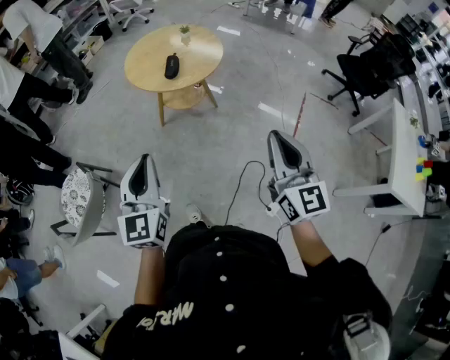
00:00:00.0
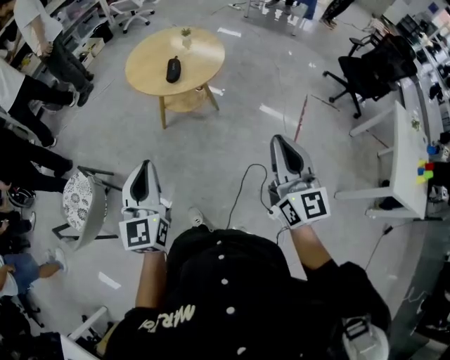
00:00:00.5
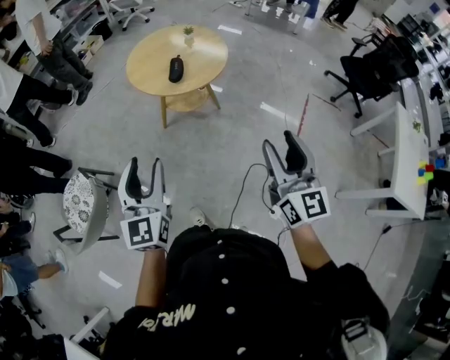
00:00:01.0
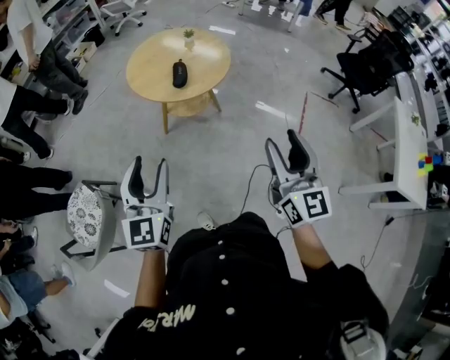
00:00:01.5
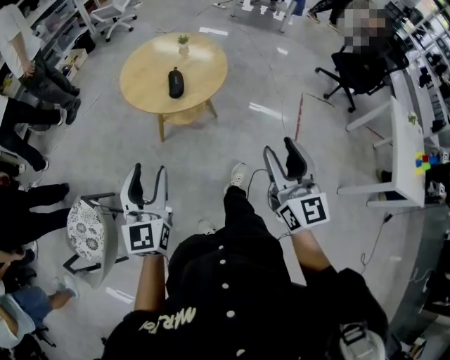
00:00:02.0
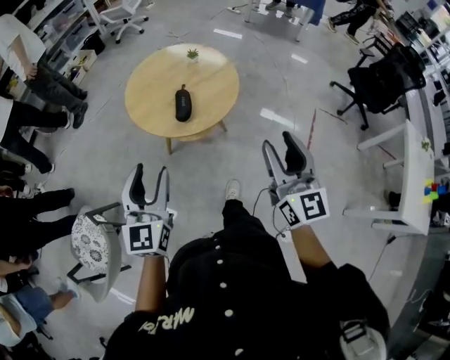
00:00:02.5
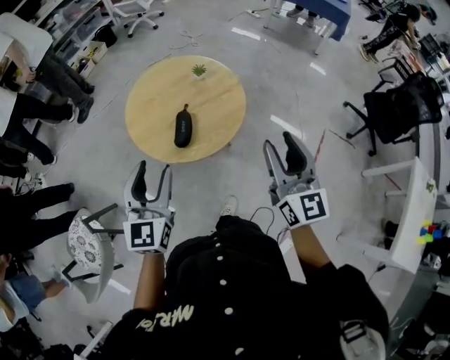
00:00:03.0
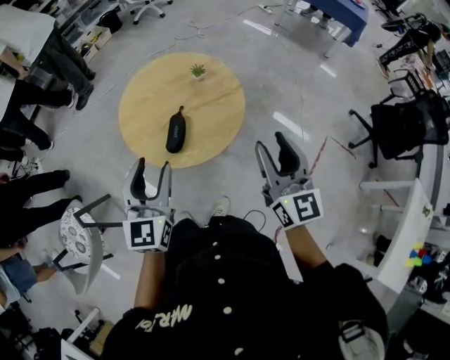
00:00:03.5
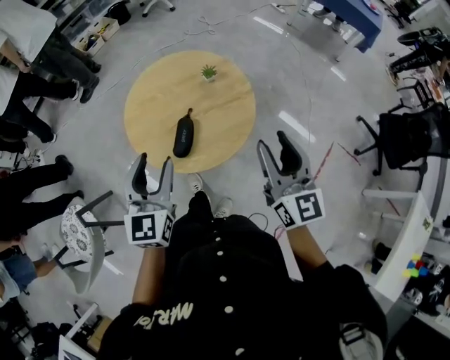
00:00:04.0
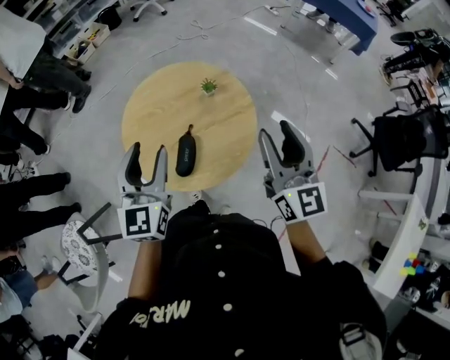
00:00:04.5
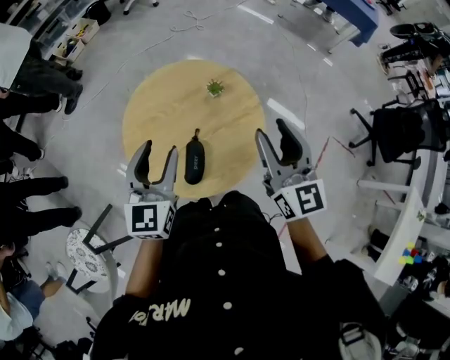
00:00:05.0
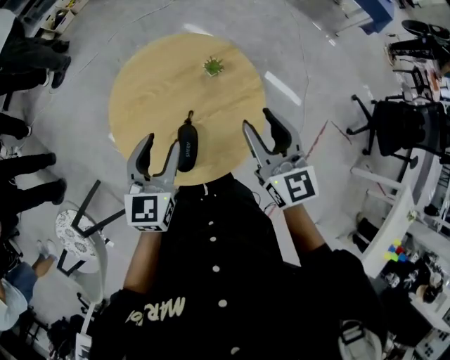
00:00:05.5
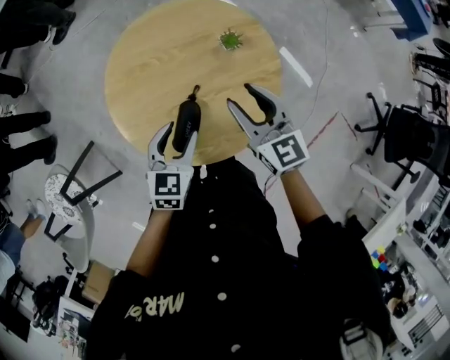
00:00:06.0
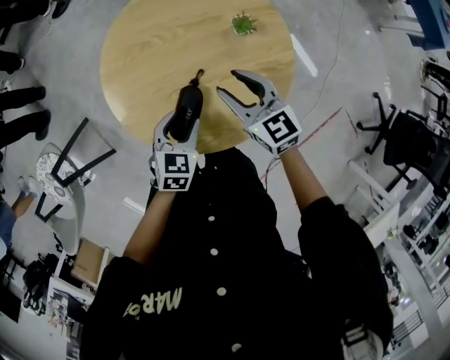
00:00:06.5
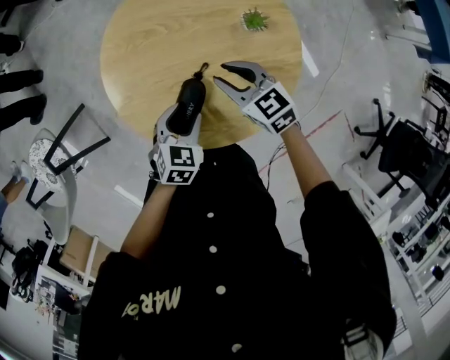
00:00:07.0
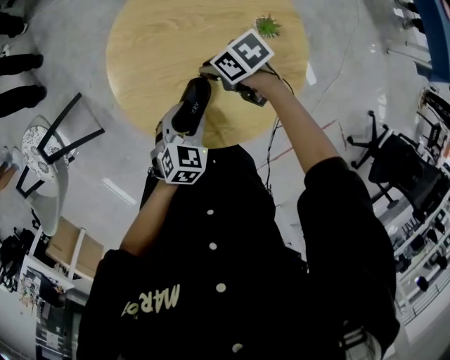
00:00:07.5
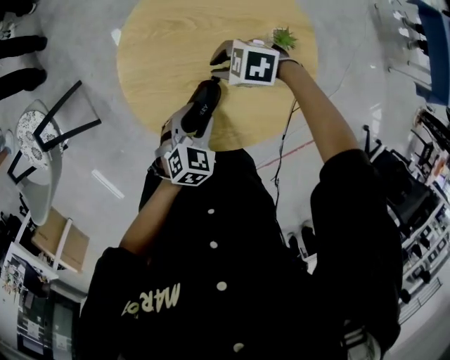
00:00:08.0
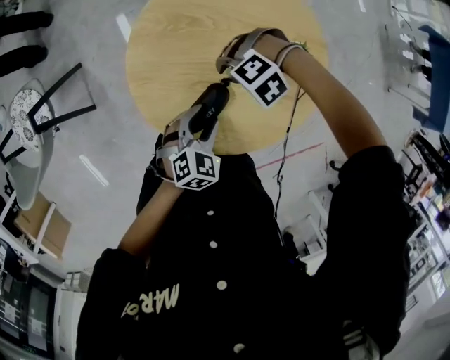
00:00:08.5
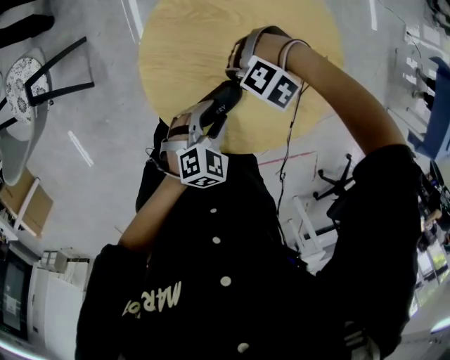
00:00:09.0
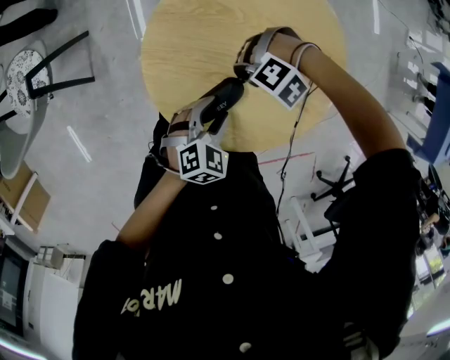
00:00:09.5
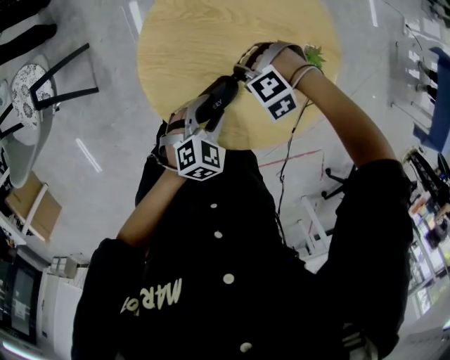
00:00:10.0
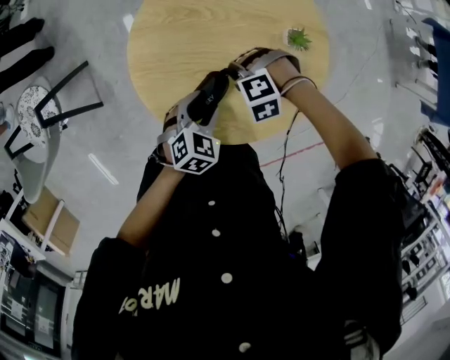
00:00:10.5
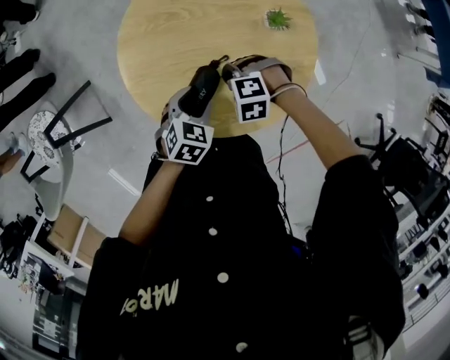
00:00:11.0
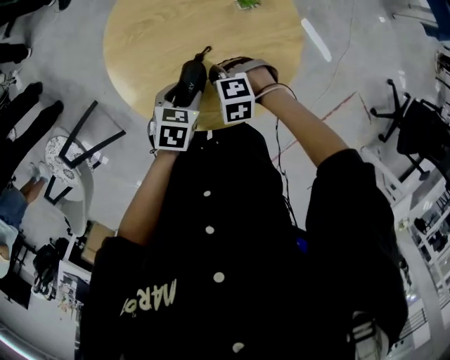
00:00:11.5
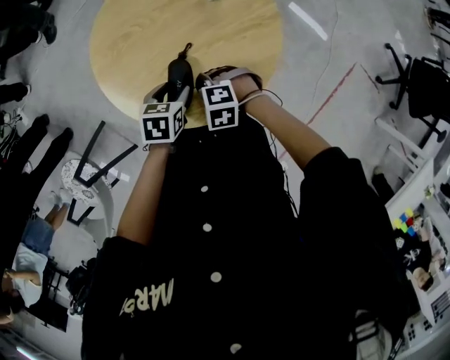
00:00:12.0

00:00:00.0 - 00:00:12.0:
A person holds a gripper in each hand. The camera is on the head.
00:00:00.0 - 00:00:02.0: The grippers both shift forward and to the left by some 15 cm. The left gripper opens its fingers, while the right gripper opens.
00:00:02.0 - 00:00:04.0: The two grippers travel together, forward, about 40 cm.
00:00:04.0 - 00:00:06.0: The right gripper travels forward, downward and to the left by approximately 35 cm, and rotates roughly 30 degrees, while the left gripper heads downward and forward, covering roughly 30 cm, and changes its angle by approximately 30 degrees.
00:00:06.0 - 00:00:08.0: The right gripper travels downward by approximately 20 cm, angles its fingers downward, by some 30 degrees, and closes, while the left gripper goes some 10 cm downward.
00:00:08.0 - 00:00:10.0: The right gripper rotates around the line of its fingers by roughly 60 degrees, counterclockwise from behind.
00:00:10.0 - 00:00:12.0: The right gripper shifts by roughly 10 cm, and rotates around the line of its fingers by approximately 70 degrees, clockwise from behind.

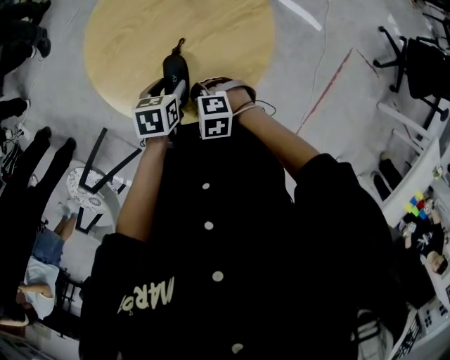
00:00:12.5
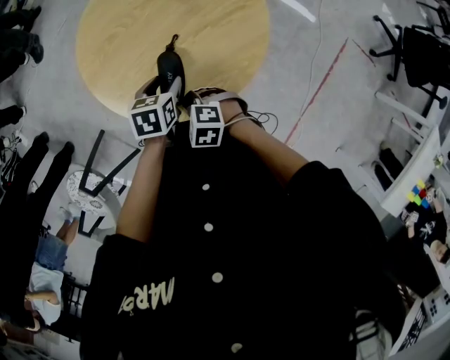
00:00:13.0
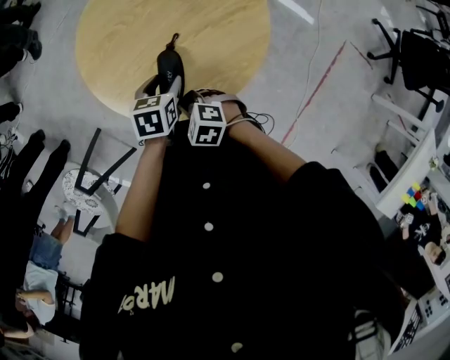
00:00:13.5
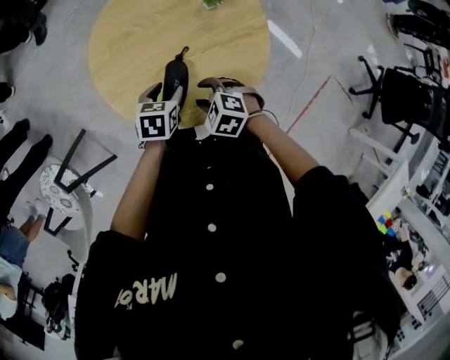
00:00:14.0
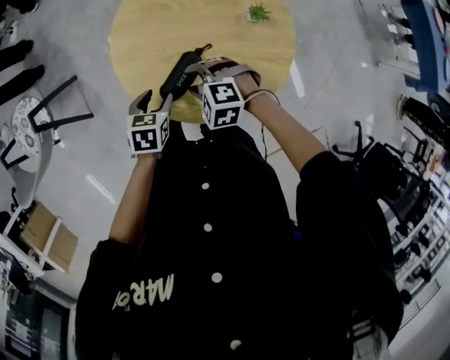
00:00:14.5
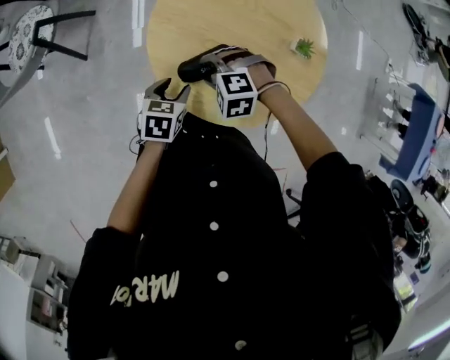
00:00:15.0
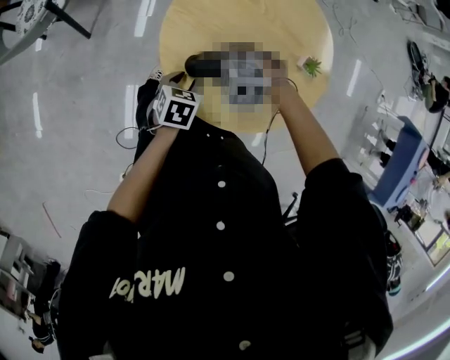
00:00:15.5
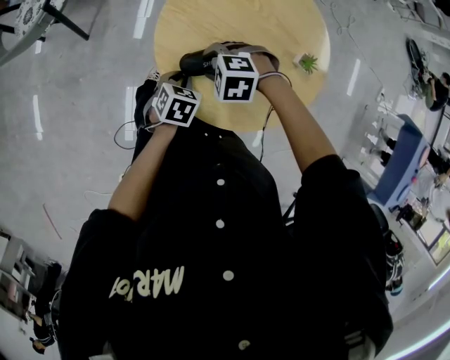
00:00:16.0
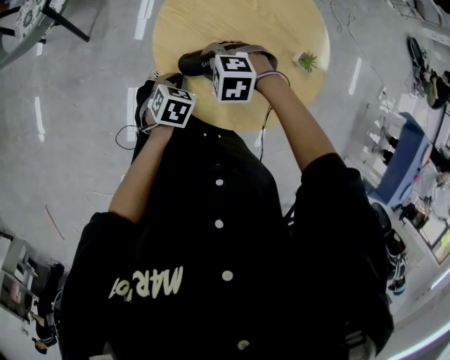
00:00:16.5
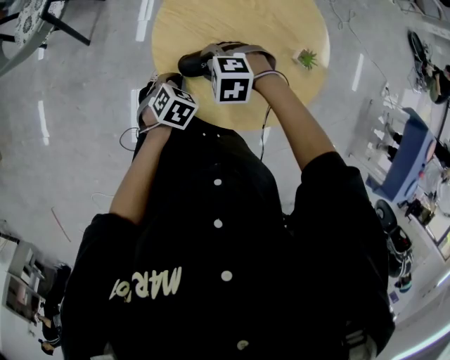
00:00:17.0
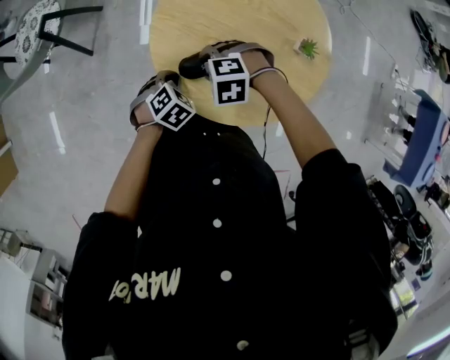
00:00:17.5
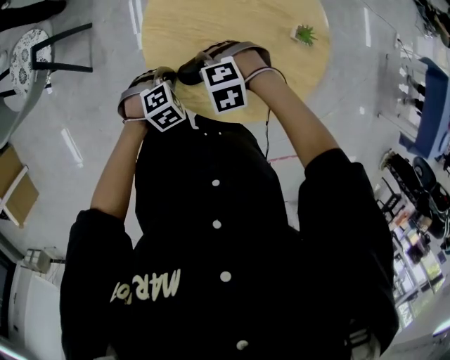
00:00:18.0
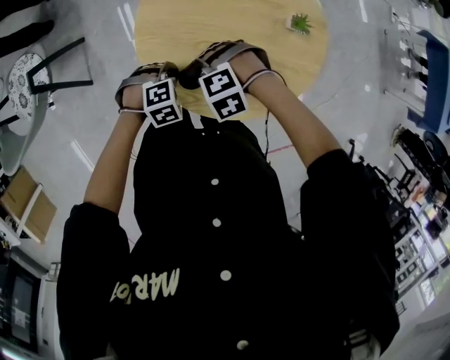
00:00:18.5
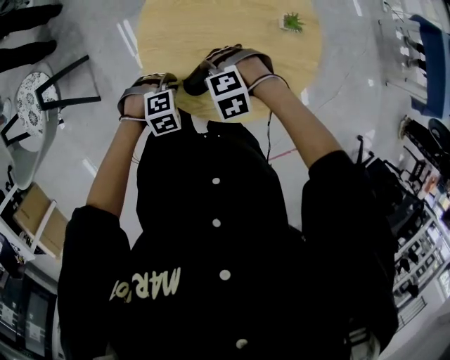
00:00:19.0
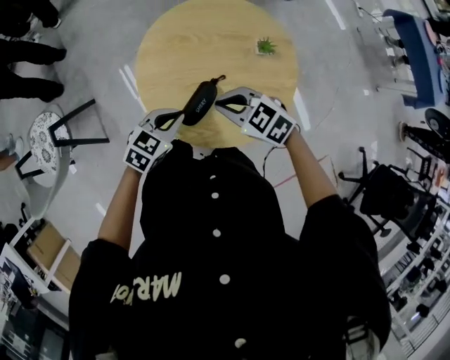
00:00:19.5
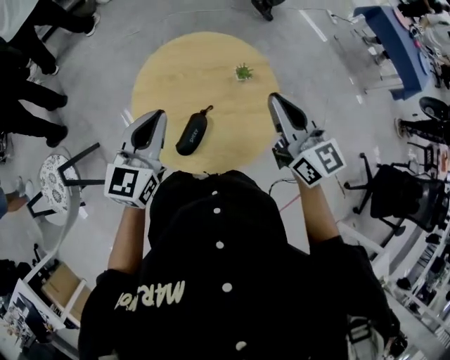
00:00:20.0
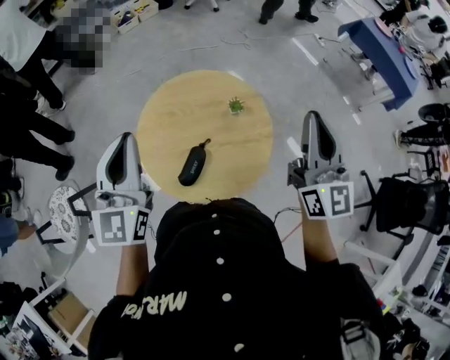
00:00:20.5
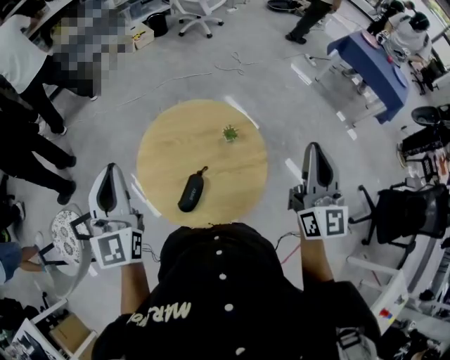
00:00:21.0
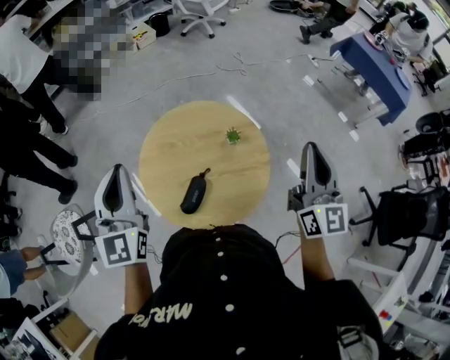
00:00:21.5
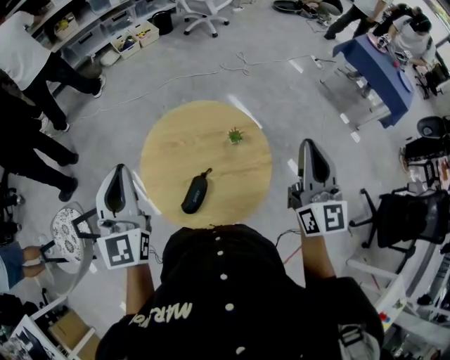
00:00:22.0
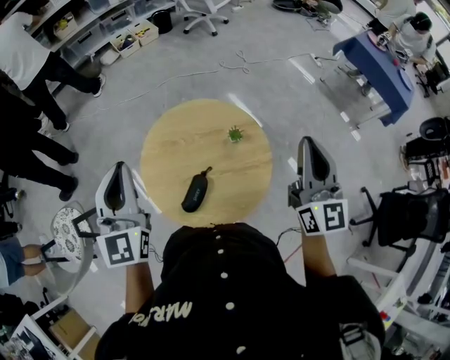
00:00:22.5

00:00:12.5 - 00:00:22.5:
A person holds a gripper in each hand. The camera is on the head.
00:00:12.5 - 00:00:14.5: The right gripper shifts roughly 5 cm upward, rotates approximately 40 degrees, and opens up. The left gripper ends up approximately 5 cm from where it was, and swivels about 30 degrees.
00:00:14.5 - 00:00:16.5: The left gripper shifts some 5 cm downward, and closes up, while the right gripper rotates approximately 40 degrees.
00:00:16.5 - 00:00:18.5: The left gripper moves about 5 cm, and rolls clockwise, seen from behind, by roughly 80 degrees.
00:00:18.5 - 00:00:20.5: Both grippers move upward, about 50 cm. The left gripper tips its fingers upward by approximately 70 degrees, while the right gripper angles its fingers upward, by approximately 90 degrees, and closes its fingers.
00:00:20.5 - 00:00:22.5: The grippers stay close to where they were, moving slightly.

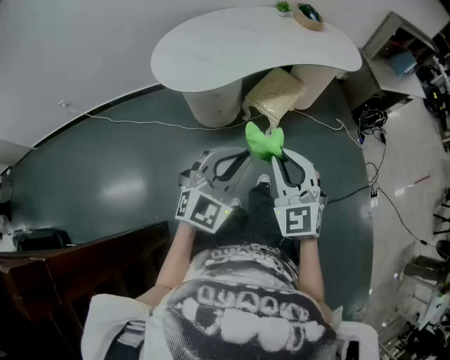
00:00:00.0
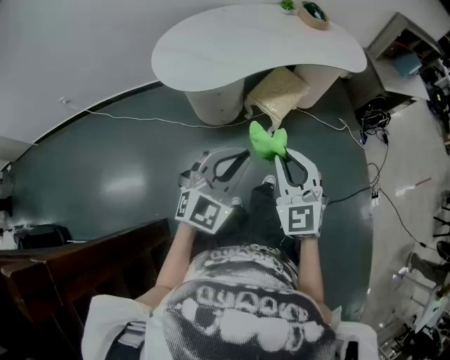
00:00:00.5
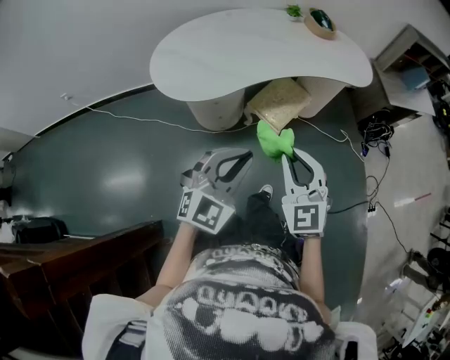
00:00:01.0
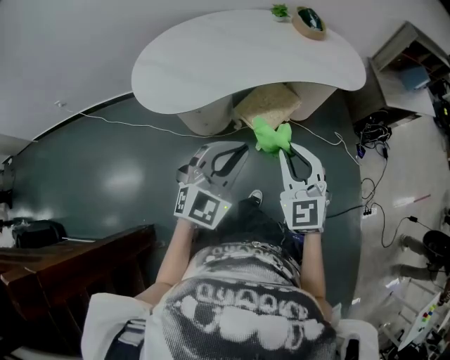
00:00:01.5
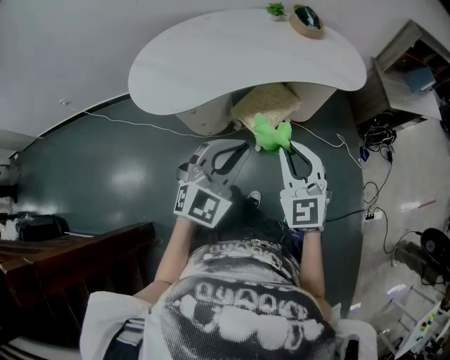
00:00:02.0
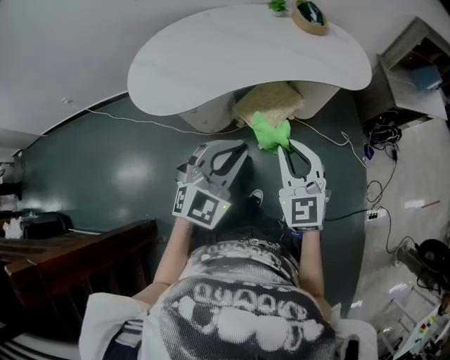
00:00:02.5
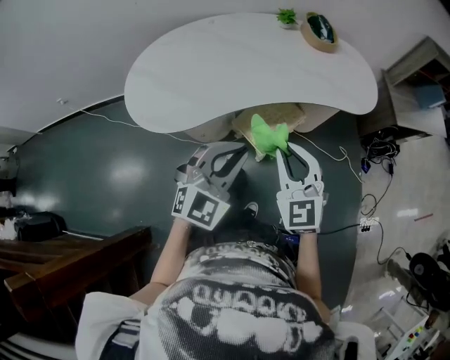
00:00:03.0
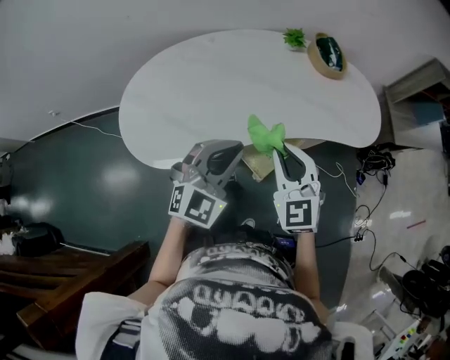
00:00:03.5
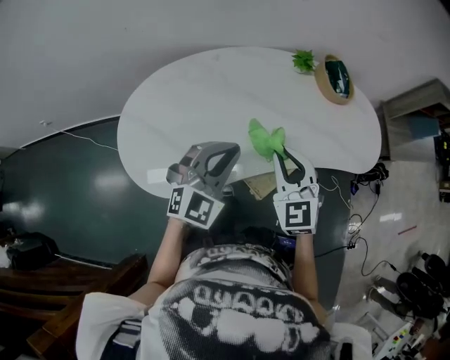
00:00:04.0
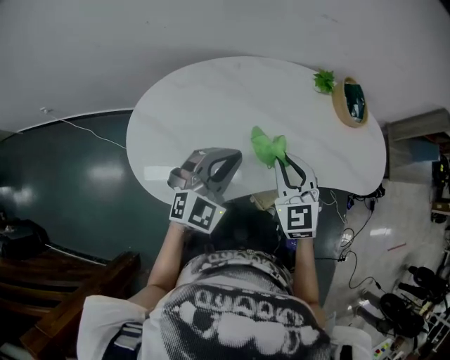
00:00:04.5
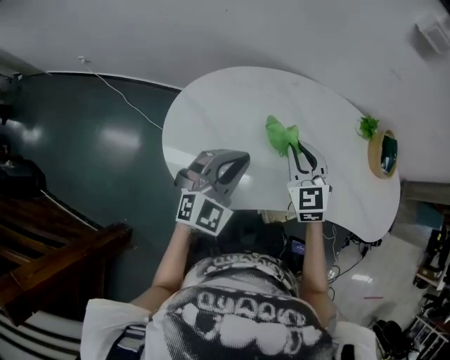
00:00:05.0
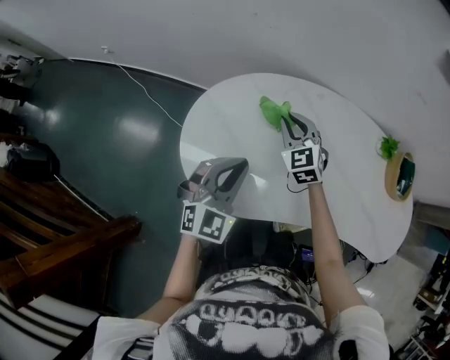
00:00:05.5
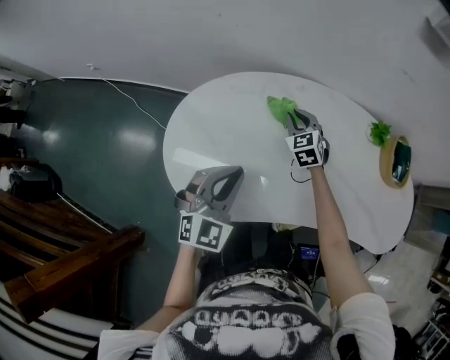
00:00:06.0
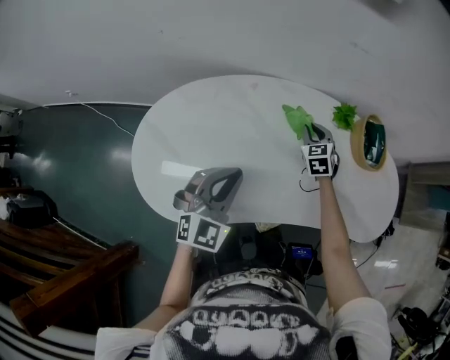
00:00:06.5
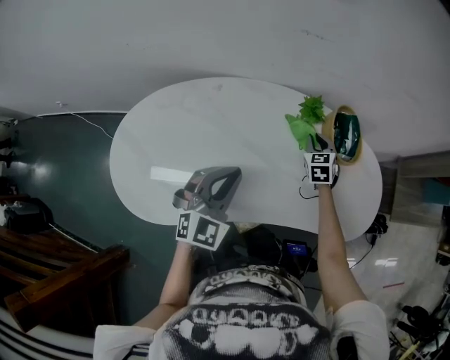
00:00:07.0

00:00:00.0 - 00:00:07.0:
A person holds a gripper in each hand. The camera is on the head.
00:00:00.0 - 00:00:02.0: The two grippers go approximately 25 cm forward and to the right.
00:00:02.0 - 00:00:03.5: The two grippers go some 25 cm forward.
00:00:03.5 - 00:00:05.0: The two grippers go some 30 cm to the left and forward. The left gripper rotates roughly 20 degrees.
00:00:05.0 - 00:00:07.0: The right gripper moves to the right and forward, roughly 40 cm, and swivels roughly 30 degrees. Meanwhile the left gripper heads to the right, covering approximately 25 cm.
